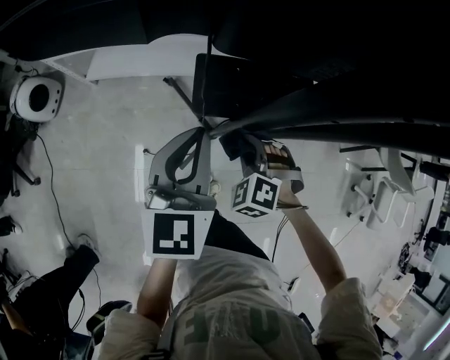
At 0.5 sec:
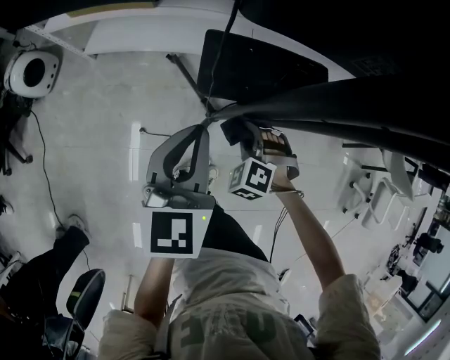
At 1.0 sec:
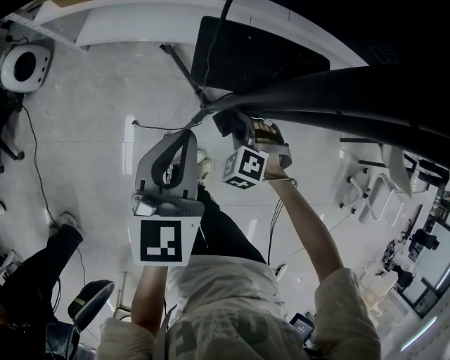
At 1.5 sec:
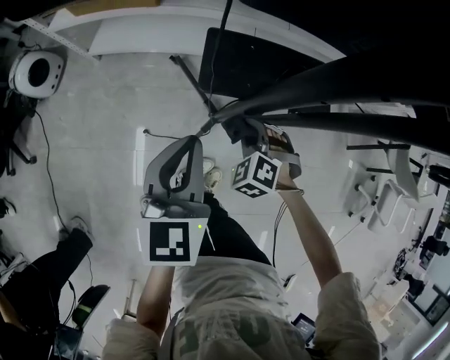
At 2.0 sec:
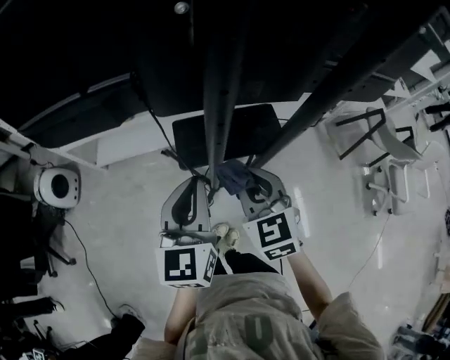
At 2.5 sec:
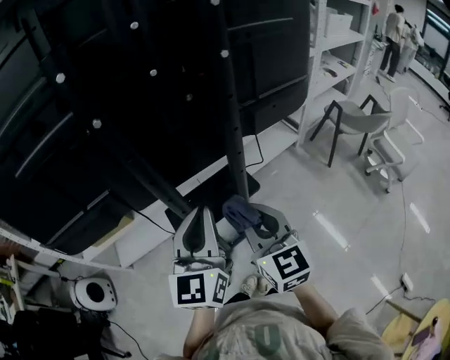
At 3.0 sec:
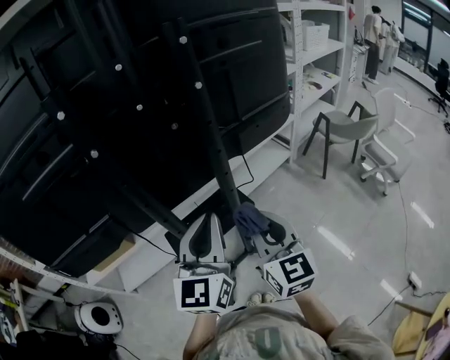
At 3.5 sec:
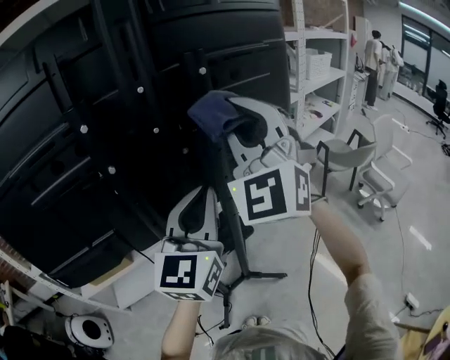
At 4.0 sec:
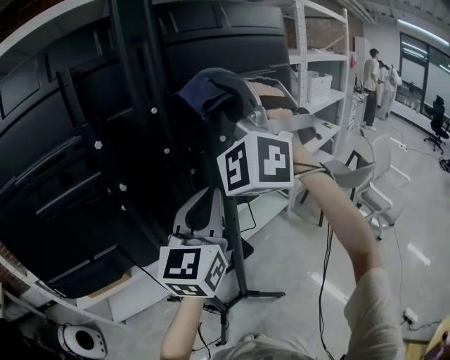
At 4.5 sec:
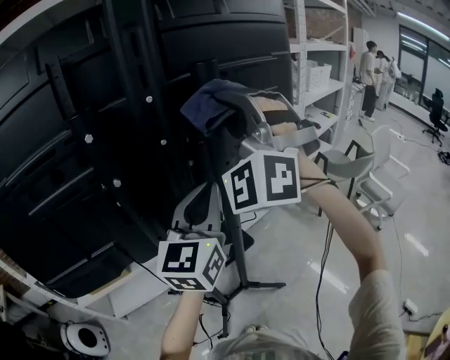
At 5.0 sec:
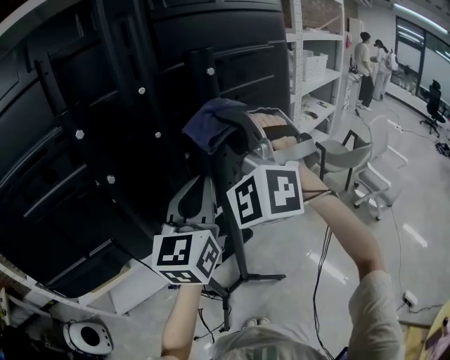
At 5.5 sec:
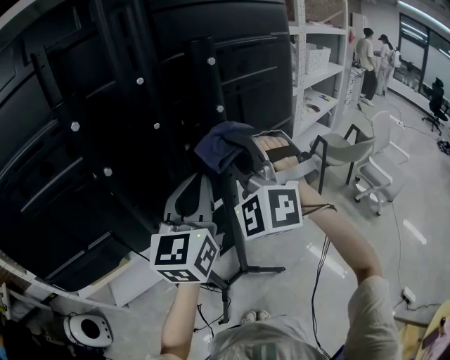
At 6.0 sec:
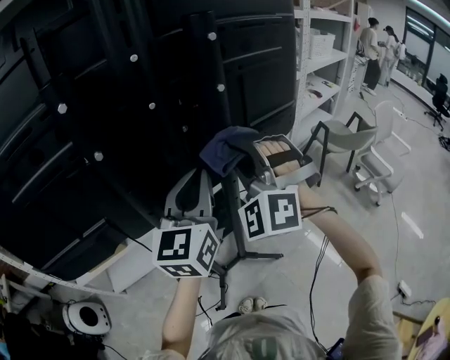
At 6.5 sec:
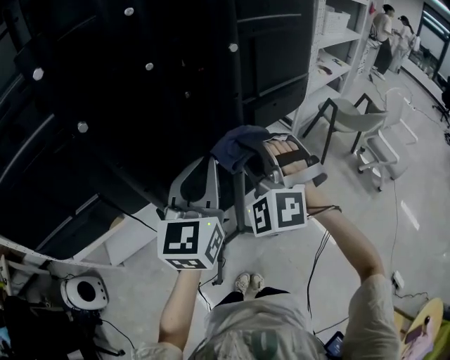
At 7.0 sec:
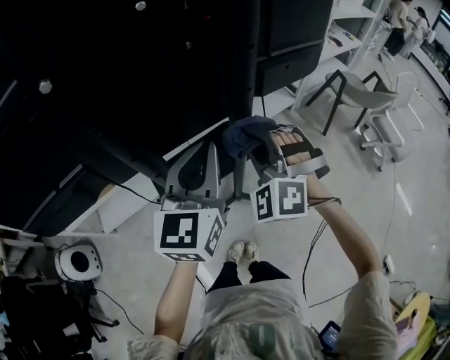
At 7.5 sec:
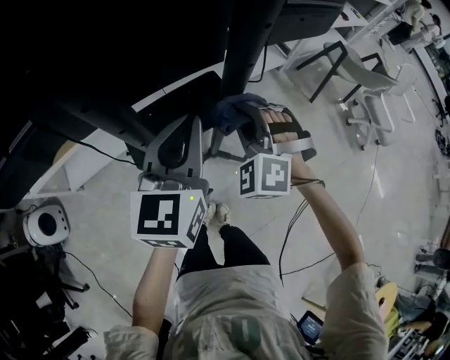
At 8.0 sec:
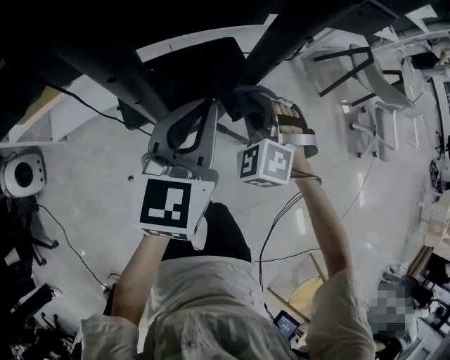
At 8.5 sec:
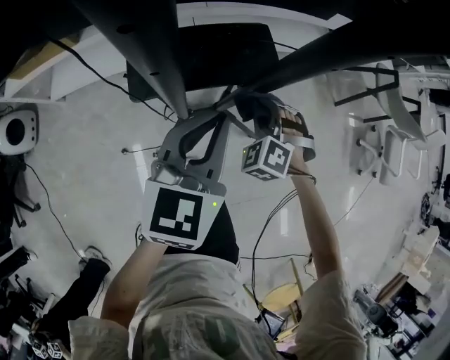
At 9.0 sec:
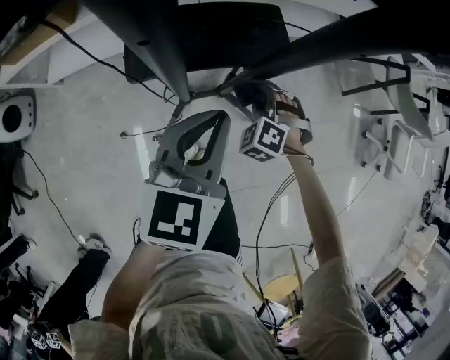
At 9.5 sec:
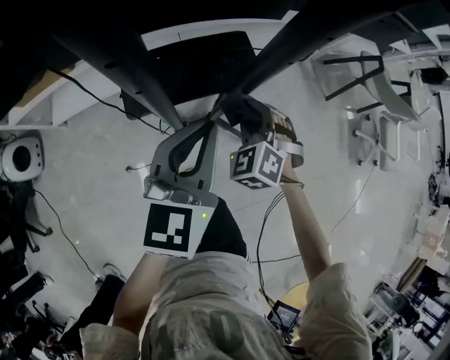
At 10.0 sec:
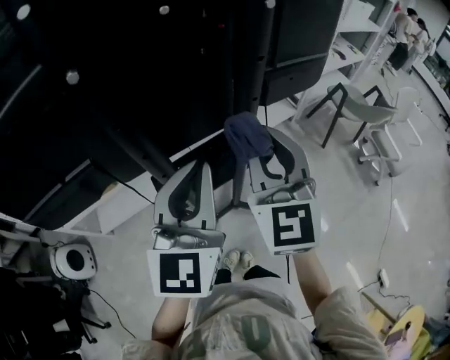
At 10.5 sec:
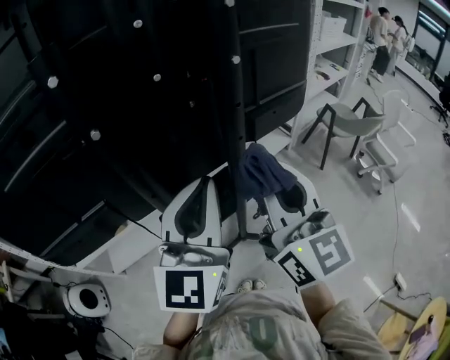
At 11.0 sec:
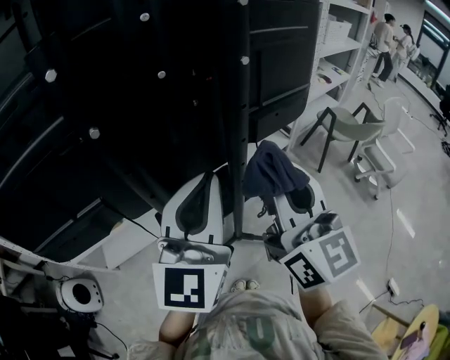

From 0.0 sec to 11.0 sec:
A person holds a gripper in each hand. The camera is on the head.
From 0.0 sec to 2.0 sec: The right gripper moves upward, approximately 20 cm, and rolls clockwise, seen from behind, by approximately 50 degrees. Meanwhile the left gripper shifts about 10 cm upward, to the right and backward.
From 2.0 sec to 3.5 sec: The right gripper is displaced upward by about 40 cm, and tips its fingers upward by about 50 degrees, while the left gripper heads upward, covering some 25 cm, and turns by roughly 40 degrees.
From 3.5 sec to 5.5 sec: The left gripper moves forward, about 5 cm. Meanwhile the right gripper travels downward by about 10 cm, and turns by approximately 30 degrees.
From 5.5 sec to 7.5 sec: The left gripper shifts approximately 20 cm downward, and turns by about 20 degrees, while the right gripper moves downward, some 35 cm, and tips its fingers downward by about 30 degrees.
From 7.5 sec to 9.0 sec: The left gripper travels downward by some 15 cm; the right gripper goes roughly 30 cm downward, and turns by roughly 20 degrees.
From 9.0 sec to 11.0 sec: The left gripper is displaced upward by roughly 40 cm, and tilts its fingers roughly 40 degrees upward. Meanwhile the right gripper shifts approximately 60 cm upward, and points its fingers approximately 70 degrees further upward.
